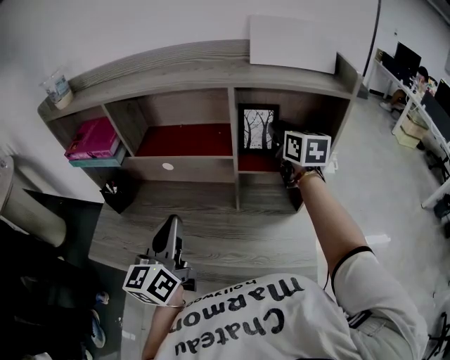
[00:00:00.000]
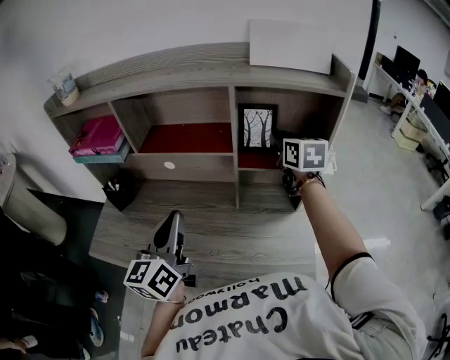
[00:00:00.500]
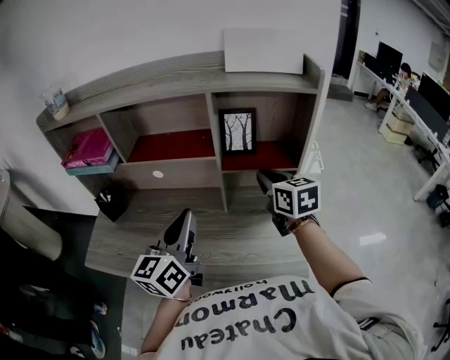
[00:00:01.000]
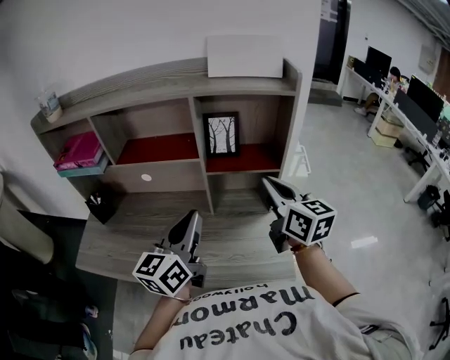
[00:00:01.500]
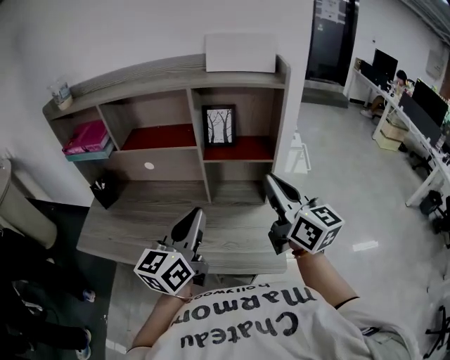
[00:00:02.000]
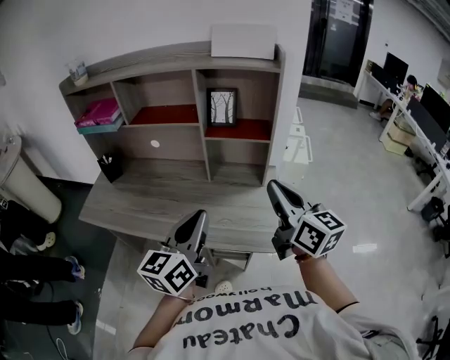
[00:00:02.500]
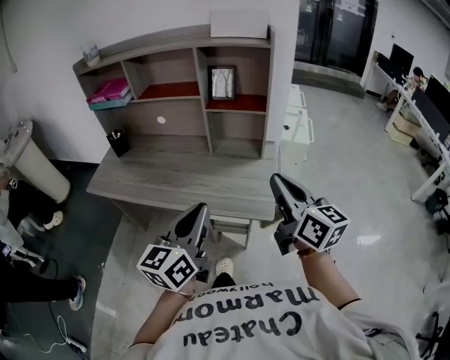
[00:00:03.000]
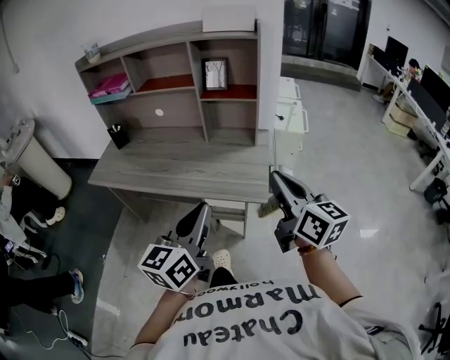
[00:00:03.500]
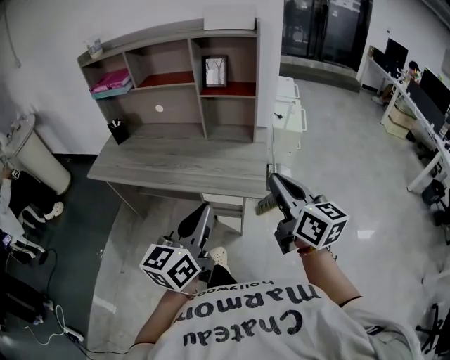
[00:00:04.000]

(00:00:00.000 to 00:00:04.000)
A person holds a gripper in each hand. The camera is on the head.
00:00:00.000 - 00:00:02.000: The left gripper goes about 20 cm to the right and backward; the right gripper moves backward, roughly 30 cm, rotates some 20 degrees, and closes.
00:00:02.000 - 00:00:04.000: Both grippers travel together backward, roughly 30 cm.

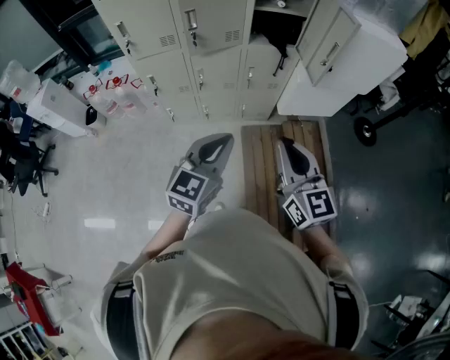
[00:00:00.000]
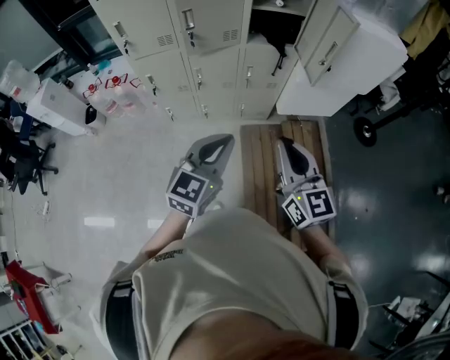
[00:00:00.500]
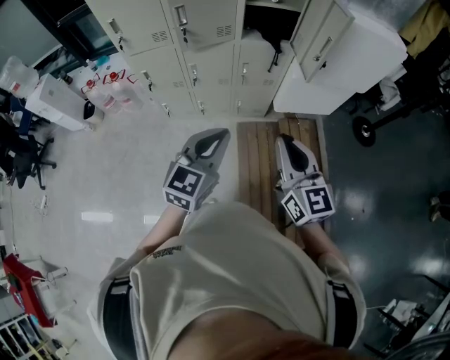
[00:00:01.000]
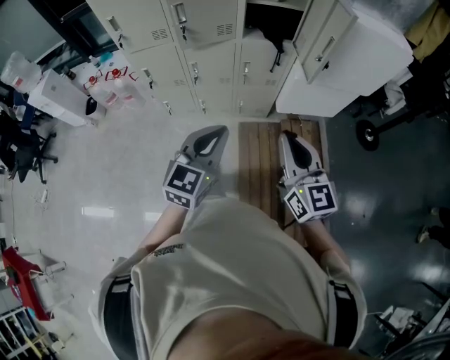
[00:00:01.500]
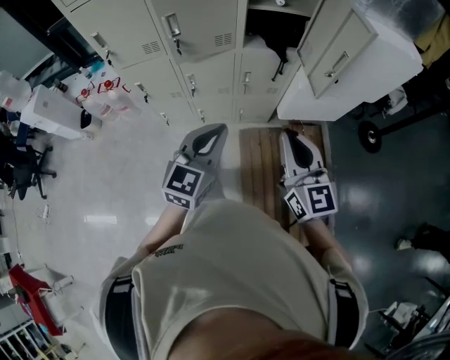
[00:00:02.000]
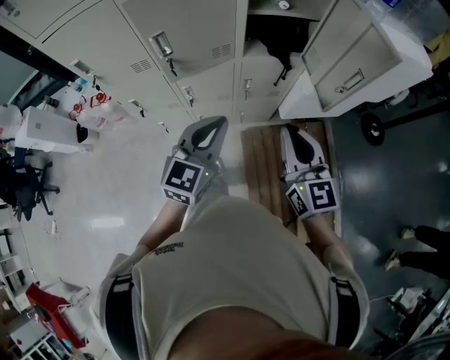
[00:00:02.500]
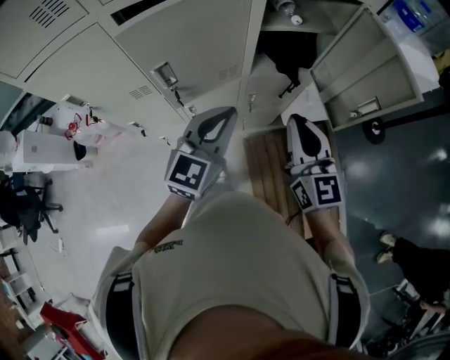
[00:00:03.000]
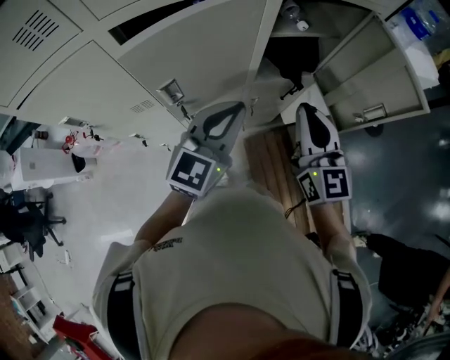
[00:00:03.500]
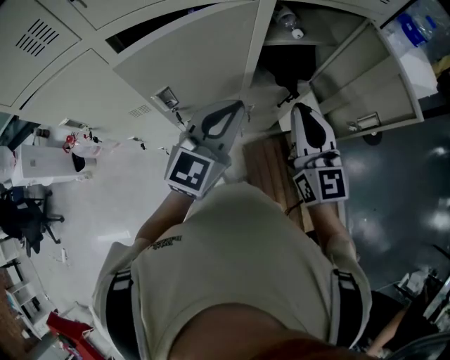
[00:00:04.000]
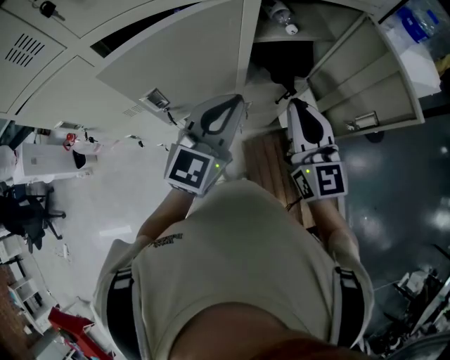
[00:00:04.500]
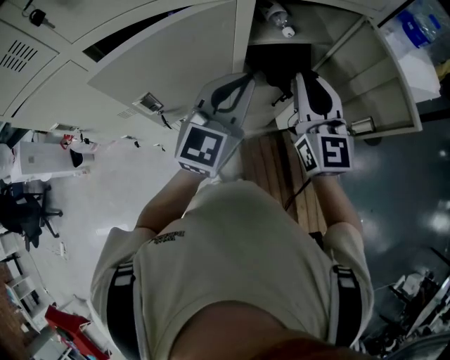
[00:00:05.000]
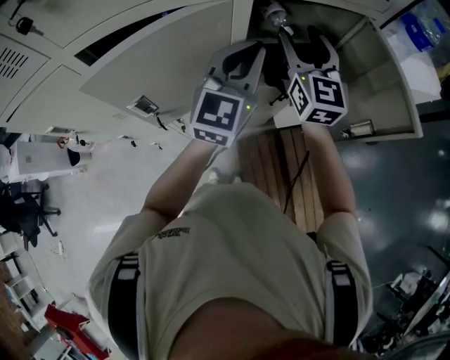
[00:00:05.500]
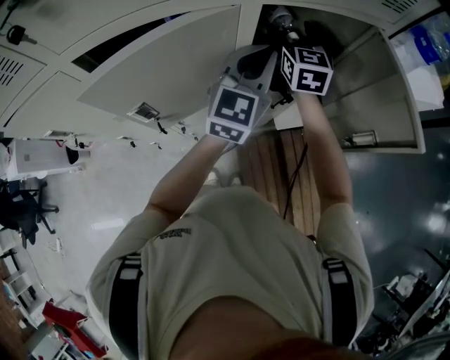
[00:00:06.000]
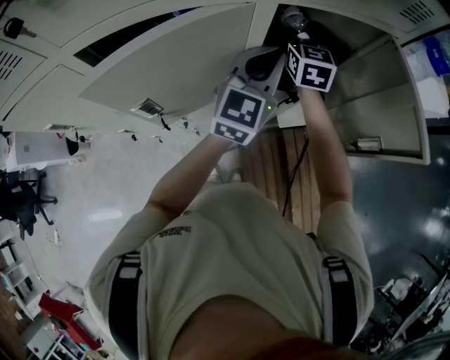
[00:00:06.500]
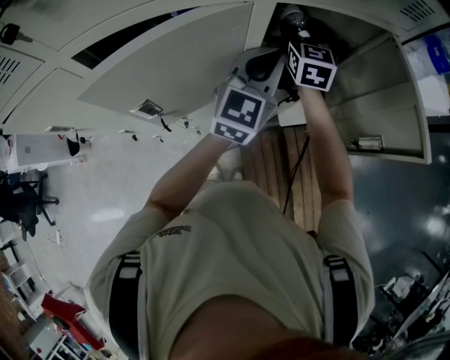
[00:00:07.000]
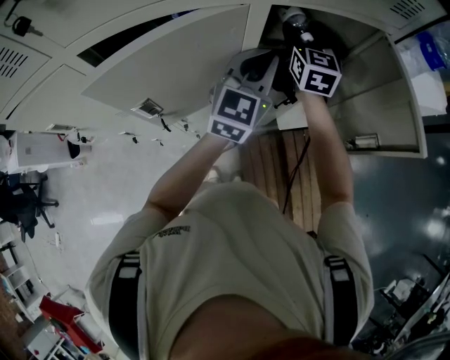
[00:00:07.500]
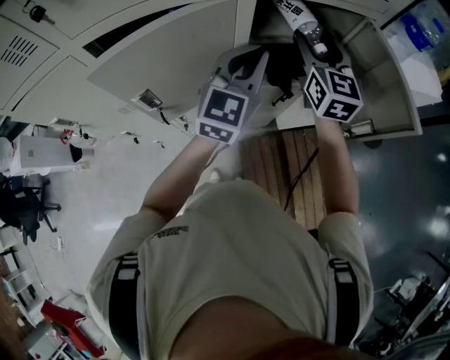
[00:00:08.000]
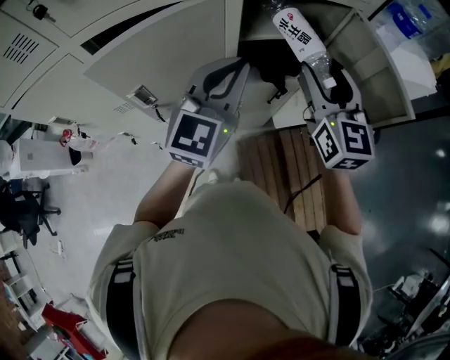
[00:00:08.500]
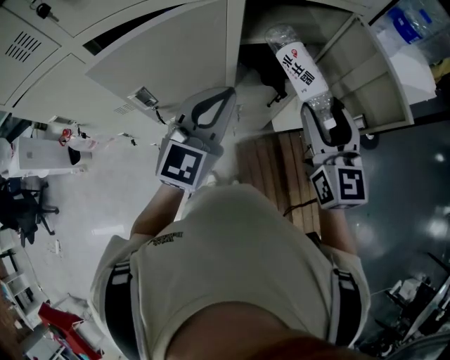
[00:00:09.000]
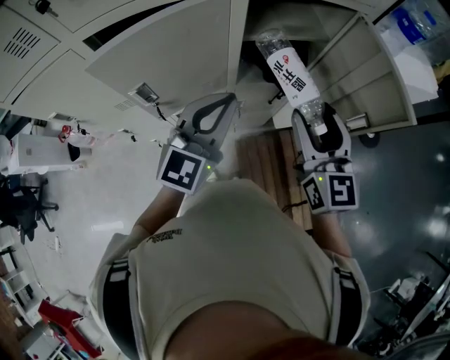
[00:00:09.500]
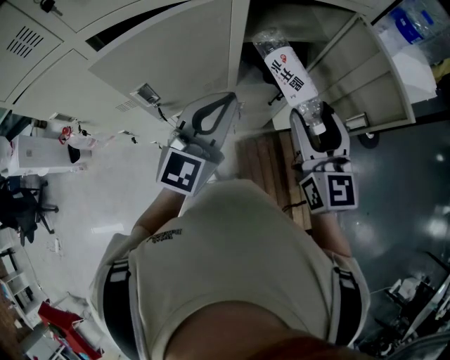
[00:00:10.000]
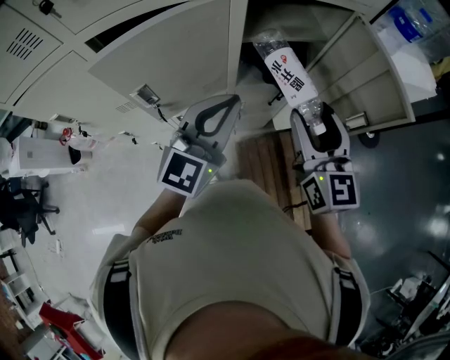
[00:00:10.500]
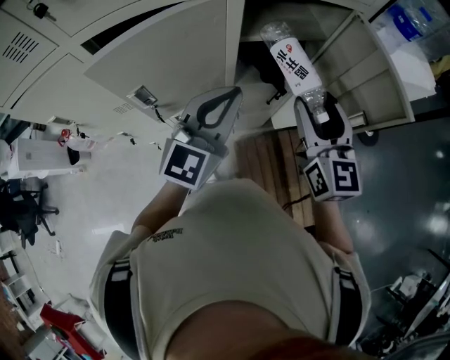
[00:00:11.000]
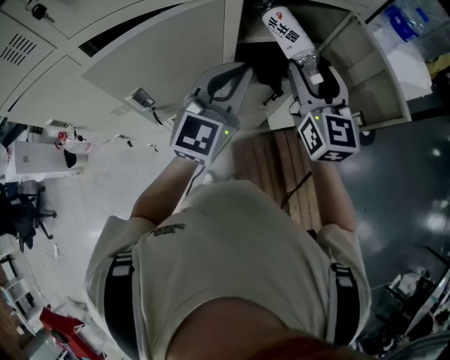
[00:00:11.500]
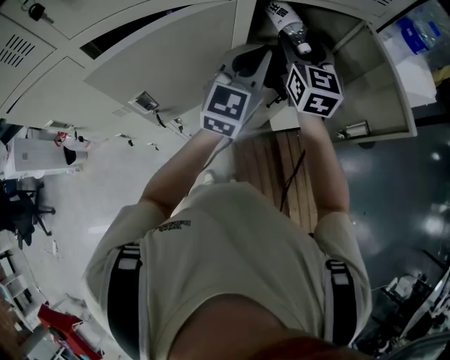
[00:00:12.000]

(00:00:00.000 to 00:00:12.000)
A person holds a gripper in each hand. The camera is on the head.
00:00:00.000 - 00:00:02.000: Both grippers move forward, about 15 cm.
00:00:02.000 - 00:00:04.000: Both grippers move forward, roughly 30 cm.
00:00:04.000 - 00:00:06.000: The right gripper heads forward, covering roughly 25 cm, and opens. Meanwhile the left gripper is displaced forward and to the right by some 20 cm.
00:00:06.000 - 00:00:08.000: The right gripper travels backward, upward and to the right by some 10 cm.
00:00:08.000 - 00:00:10.000: The left gripper goes approximately 15 cm backward, while the right gripper is displaced backward by some 20 cm.
00:00:10.000 - 00:00:12.000: Both grippers travel together forward, some 15 cm.

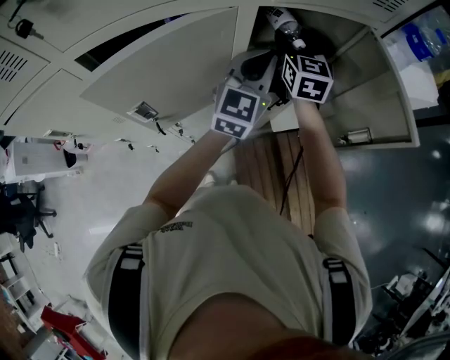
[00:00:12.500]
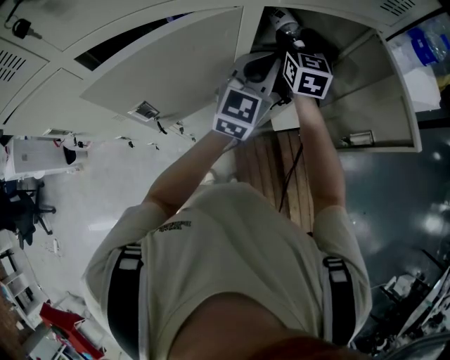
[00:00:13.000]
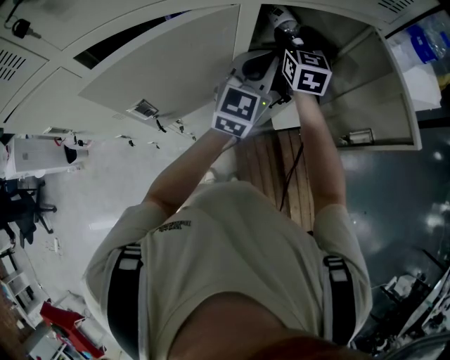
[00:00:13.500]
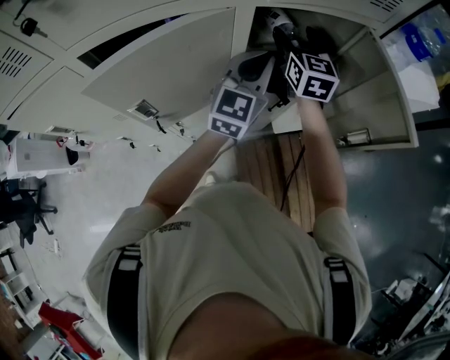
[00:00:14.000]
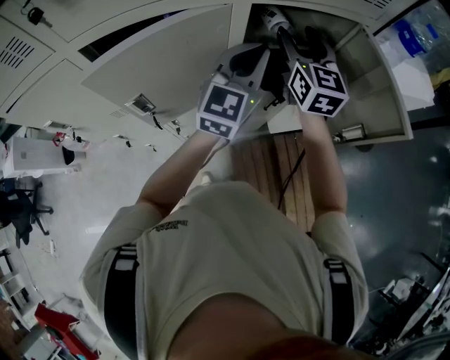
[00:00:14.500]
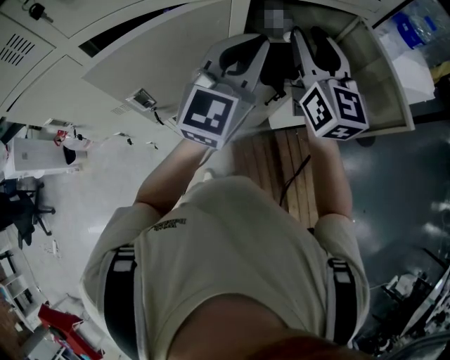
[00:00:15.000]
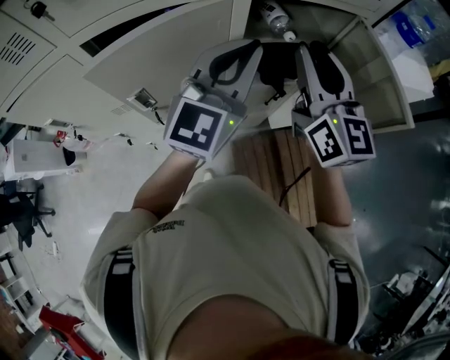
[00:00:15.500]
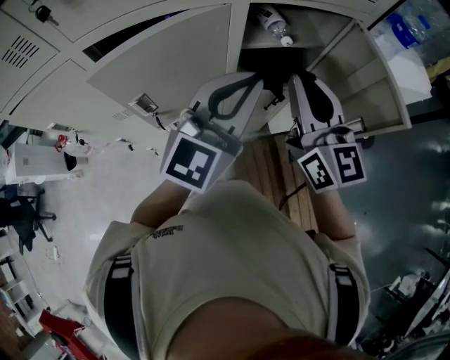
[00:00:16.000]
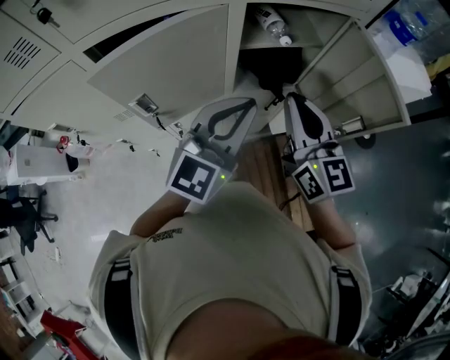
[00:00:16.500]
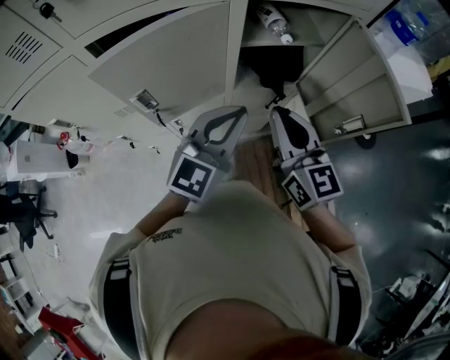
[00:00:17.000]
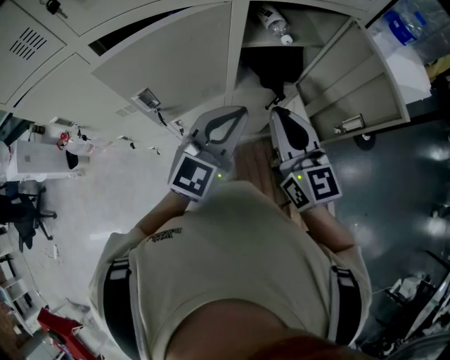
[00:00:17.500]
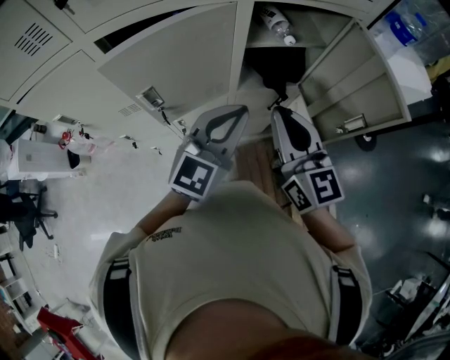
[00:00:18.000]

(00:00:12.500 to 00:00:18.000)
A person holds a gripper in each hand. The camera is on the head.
00:00:12.500 - 00:00:14.500: The right gripper shifts about 5 cm upward.
00:00:14.500 - 00:00:16.000: The left gripper moves backward and upward, roughly 15 cm. Meanwhile the right gripper heads backward, covering about 15 cm, and closes its fingers.
00:00:16.000 - 00:00:18.000: The left gripper shifts roughly 10 cm downward, while the right gripper moves backward and downward, approximately 10 cm.

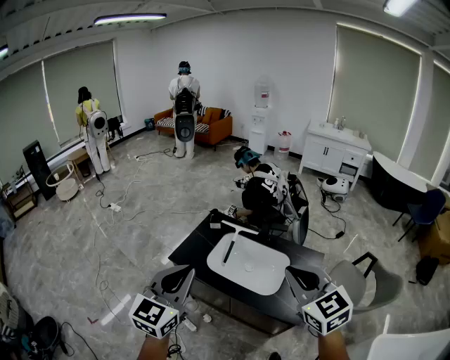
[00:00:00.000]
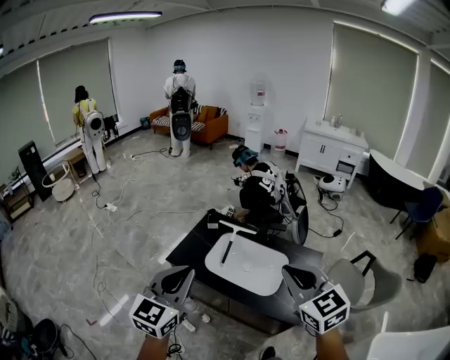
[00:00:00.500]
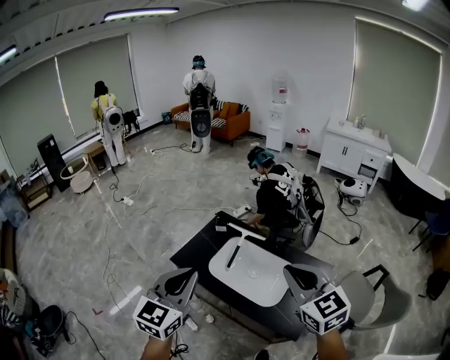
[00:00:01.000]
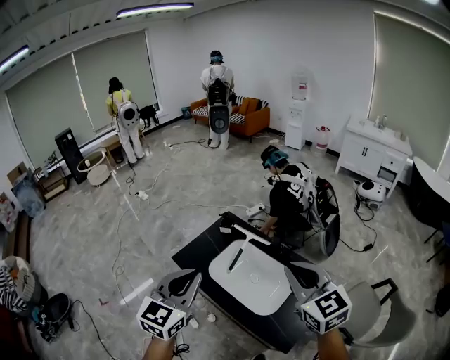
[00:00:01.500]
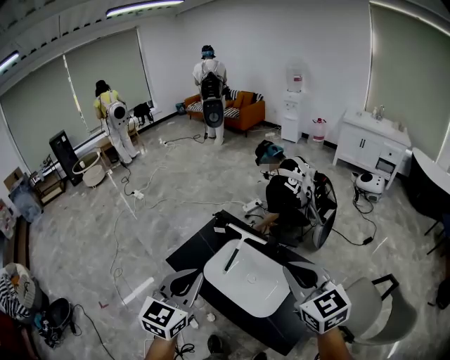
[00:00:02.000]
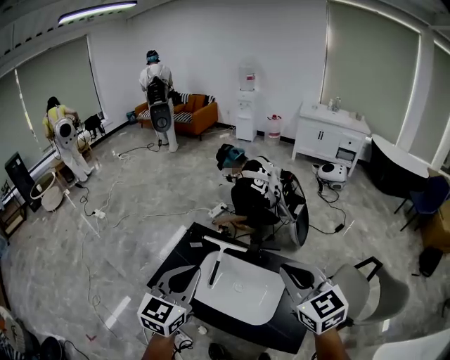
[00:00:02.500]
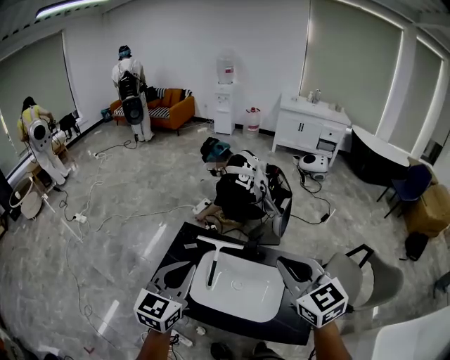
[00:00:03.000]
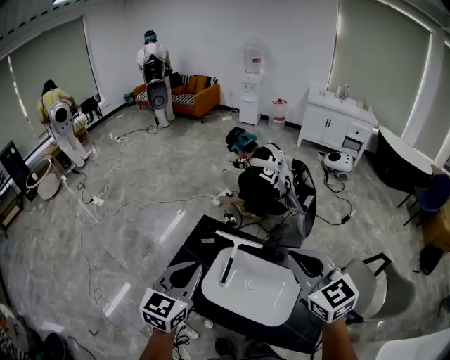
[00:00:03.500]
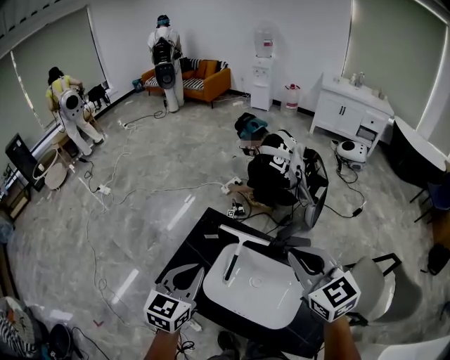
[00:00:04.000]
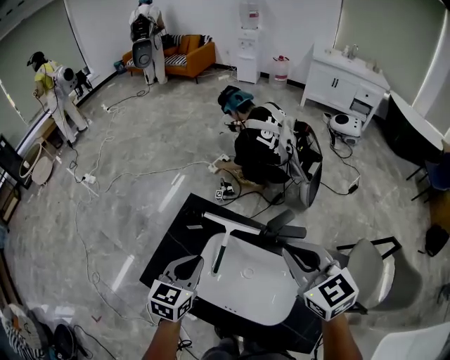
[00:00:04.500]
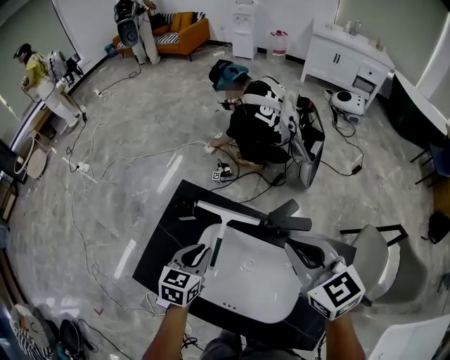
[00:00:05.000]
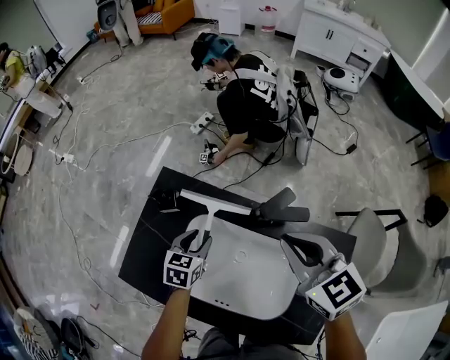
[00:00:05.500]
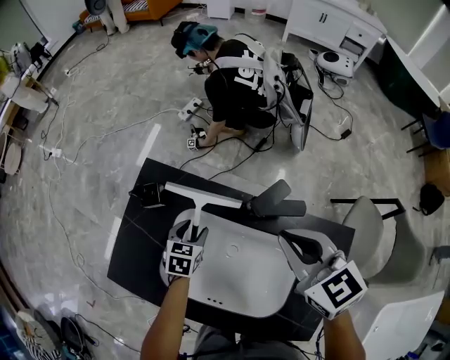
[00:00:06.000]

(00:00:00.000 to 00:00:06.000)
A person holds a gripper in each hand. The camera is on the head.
00:00:00.000 - 00:00:02.000: Both grippers travel together forward and to the right, roughly 25 cm.
00:00:02.000 - 00:00:04.000: The left gripper travels forward, downward and to the left by about 30 cm. The right gripper shifts roughly 25 cm forward and to the left.
00:00:04.000 - 00:00:06.000: The left gripper travels downward and forward by approximately 50 cm, points its fingers about 30 degrees further downward, and opens up; the right gripper moves downward and forward, roughly 25 cm.
